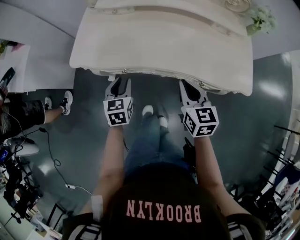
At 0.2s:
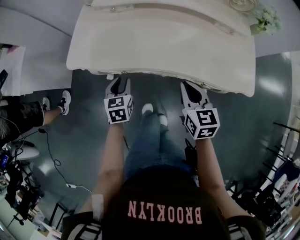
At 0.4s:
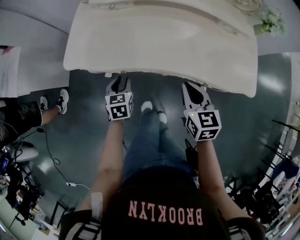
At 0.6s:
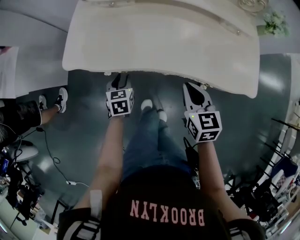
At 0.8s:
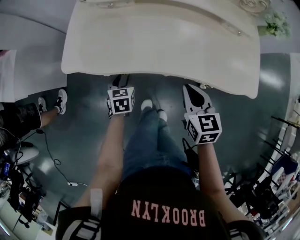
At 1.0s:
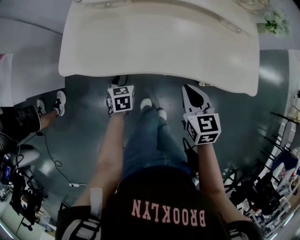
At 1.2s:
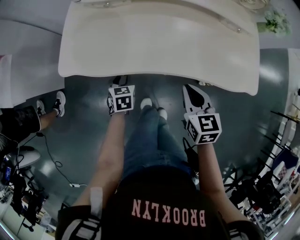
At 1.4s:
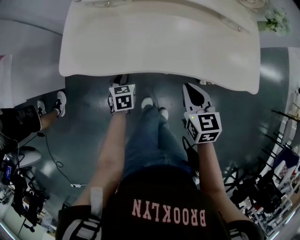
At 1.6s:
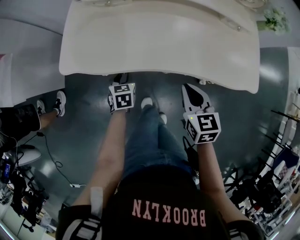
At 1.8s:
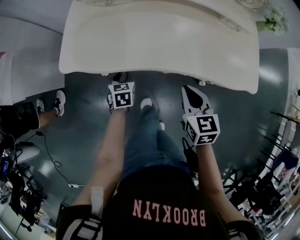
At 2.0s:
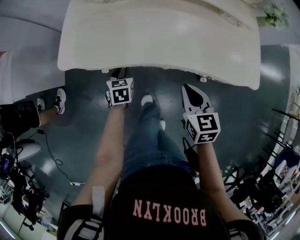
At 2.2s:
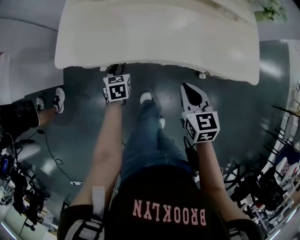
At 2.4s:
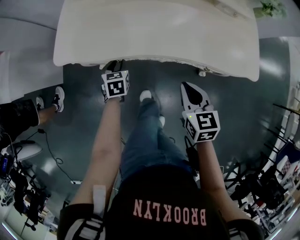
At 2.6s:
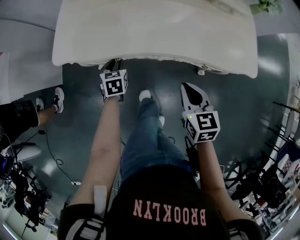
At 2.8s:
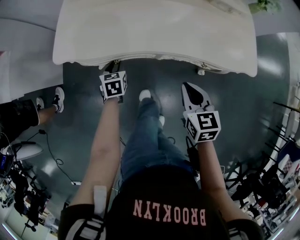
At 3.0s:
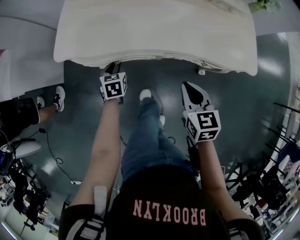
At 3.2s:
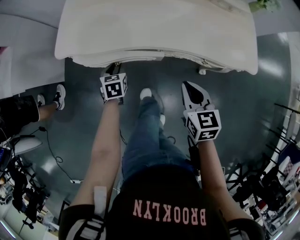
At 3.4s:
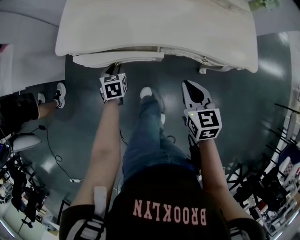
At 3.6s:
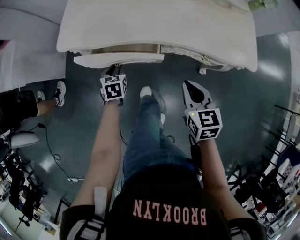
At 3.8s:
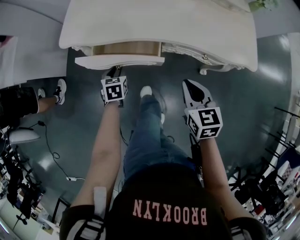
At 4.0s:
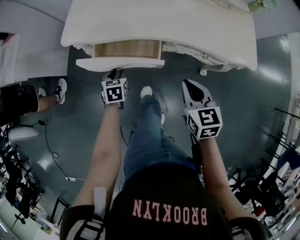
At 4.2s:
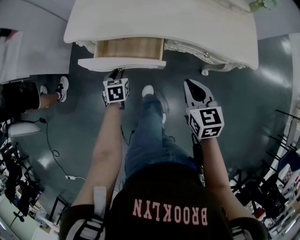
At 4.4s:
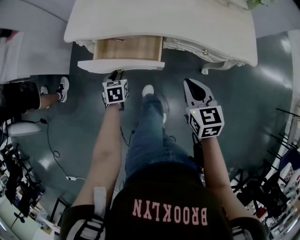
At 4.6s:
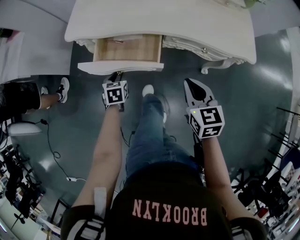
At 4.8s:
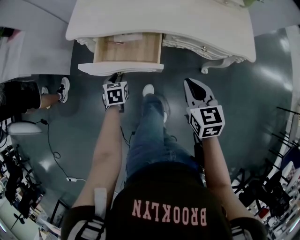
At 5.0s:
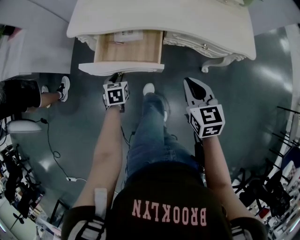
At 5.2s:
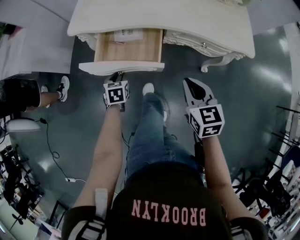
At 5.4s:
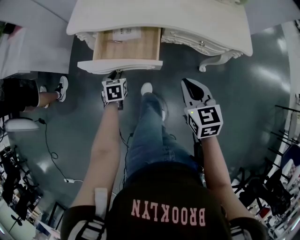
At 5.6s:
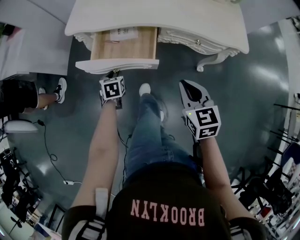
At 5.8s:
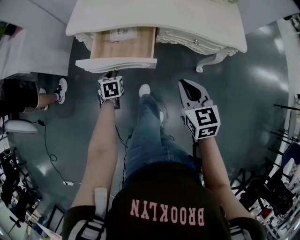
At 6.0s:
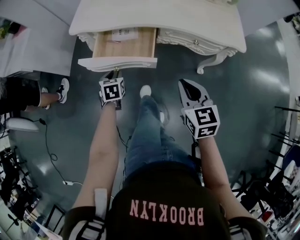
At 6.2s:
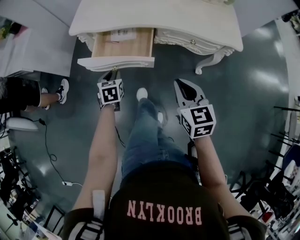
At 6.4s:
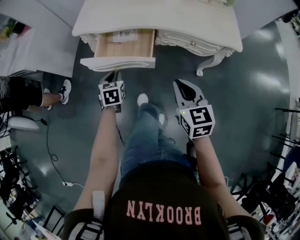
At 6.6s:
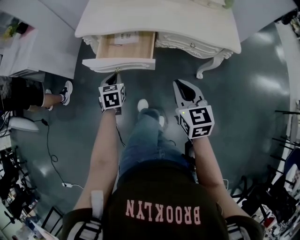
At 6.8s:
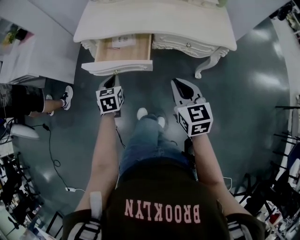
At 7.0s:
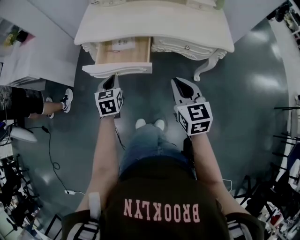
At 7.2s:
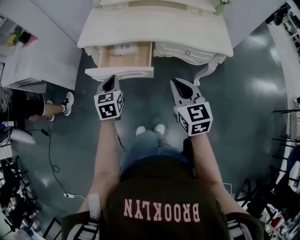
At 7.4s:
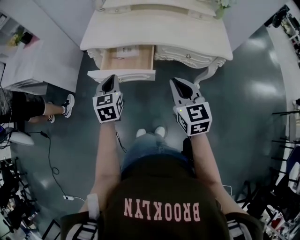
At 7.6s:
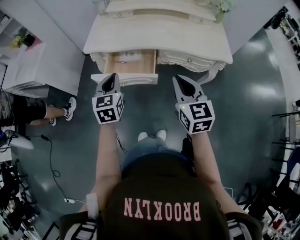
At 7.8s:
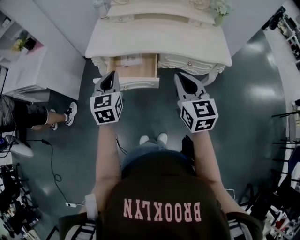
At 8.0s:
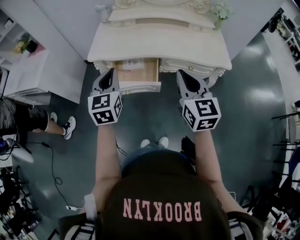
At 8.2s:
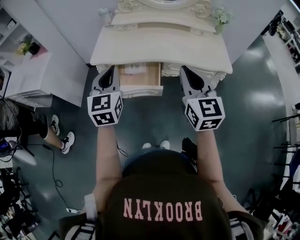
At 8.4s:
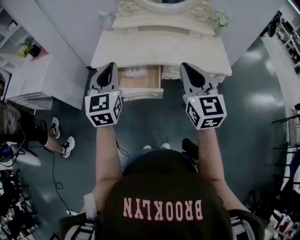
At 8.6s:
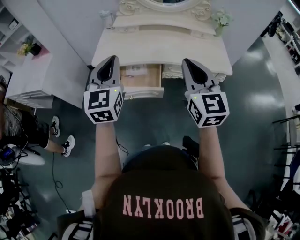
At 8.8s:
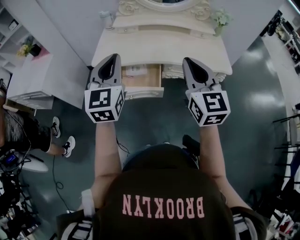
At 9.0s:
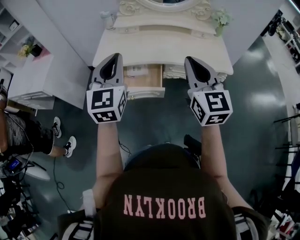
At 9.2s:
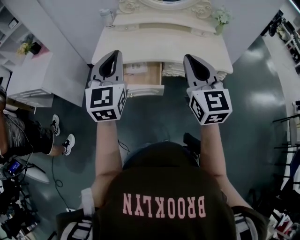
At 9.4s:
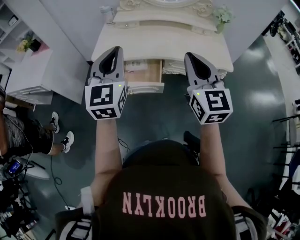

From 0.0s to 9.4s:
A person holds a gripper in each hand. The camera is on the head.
From 0.0s to 1.6s: The left gripper goes about 15 cm downward and forward.
From 1.6s to 3.2s: The right gripper travels backward by approximately 10 cm, while the left gripper heads backward, covering some 5 cm.
From 3.2s to 4.8s: The right gripper heads backward, covering approximately 10 cm, while the left gripper is displaced backward by approximately 15 cm.
From 4.8s to 6.2s: The right gripper is displaced backward by approximately 10 cm. Meanwhile the left gripper goes roughly 10 cm upward and backward.
From 6.2s to 7.8s: The left gripper travels upward by some 25 cm, rotates about 30 degrees, and closes. The right gripper shifts about 15 cm upward.
From 7.8s to 9.4s: Both grippers travel together upward, about 15 cm. The left gripper changes its angle by roughly 20 degrees.

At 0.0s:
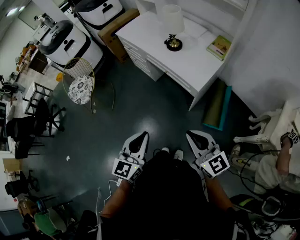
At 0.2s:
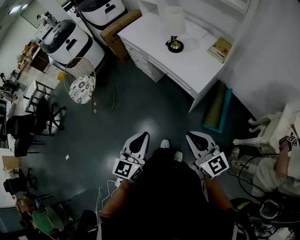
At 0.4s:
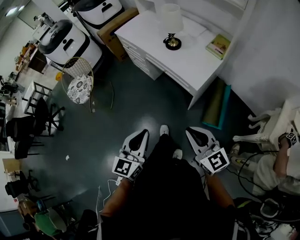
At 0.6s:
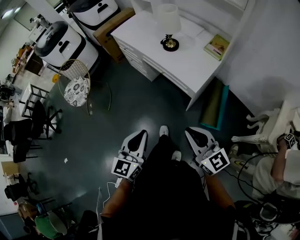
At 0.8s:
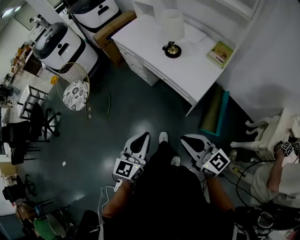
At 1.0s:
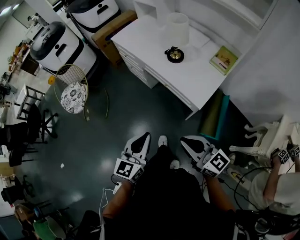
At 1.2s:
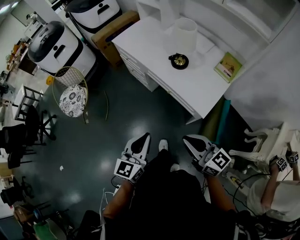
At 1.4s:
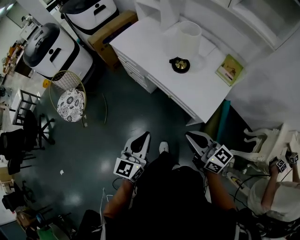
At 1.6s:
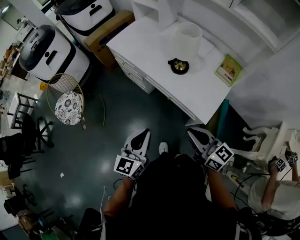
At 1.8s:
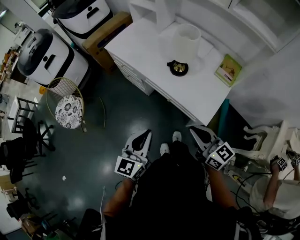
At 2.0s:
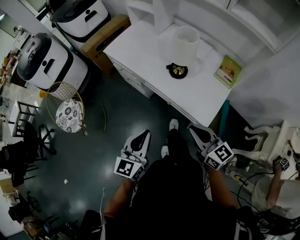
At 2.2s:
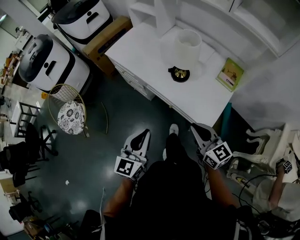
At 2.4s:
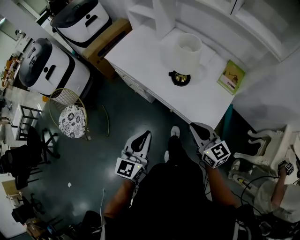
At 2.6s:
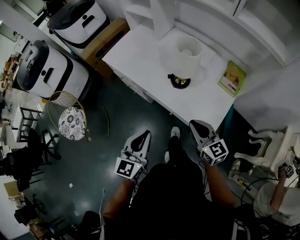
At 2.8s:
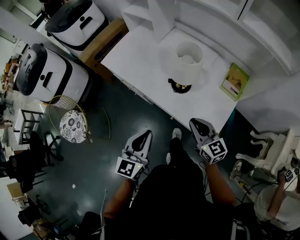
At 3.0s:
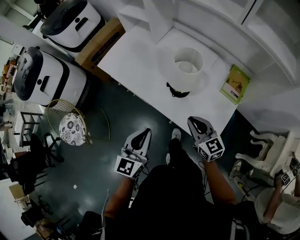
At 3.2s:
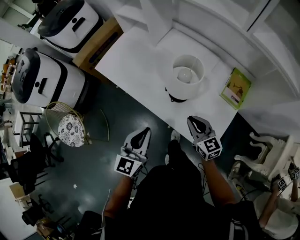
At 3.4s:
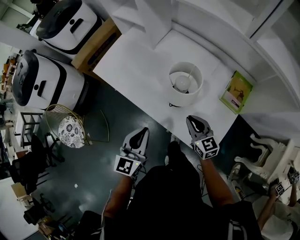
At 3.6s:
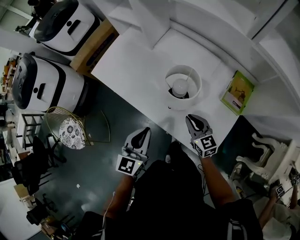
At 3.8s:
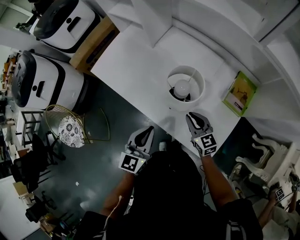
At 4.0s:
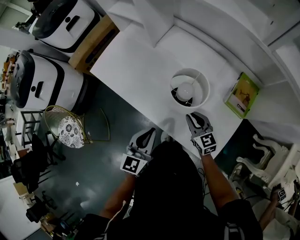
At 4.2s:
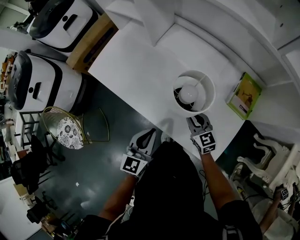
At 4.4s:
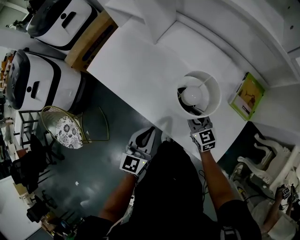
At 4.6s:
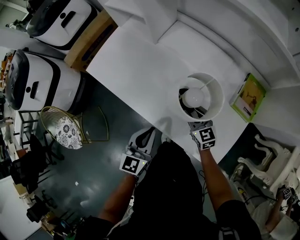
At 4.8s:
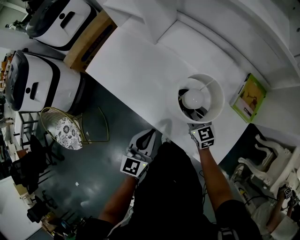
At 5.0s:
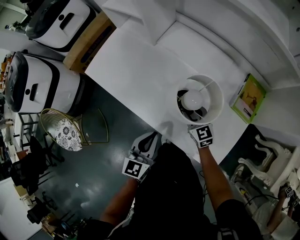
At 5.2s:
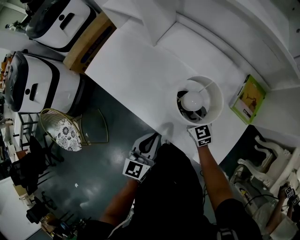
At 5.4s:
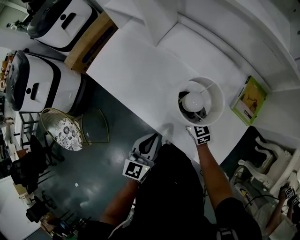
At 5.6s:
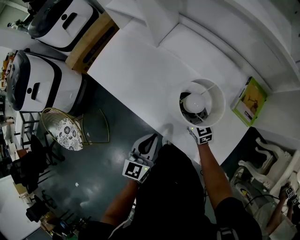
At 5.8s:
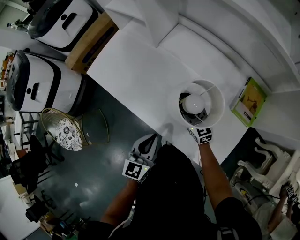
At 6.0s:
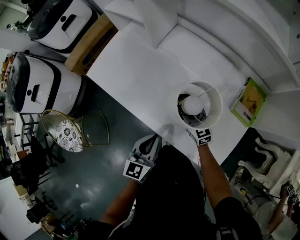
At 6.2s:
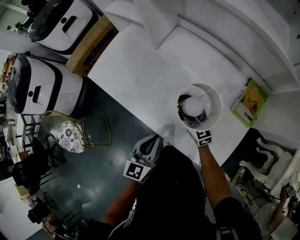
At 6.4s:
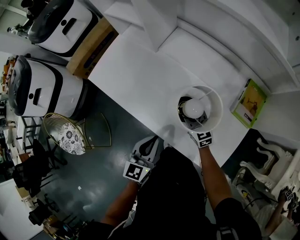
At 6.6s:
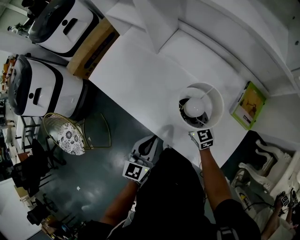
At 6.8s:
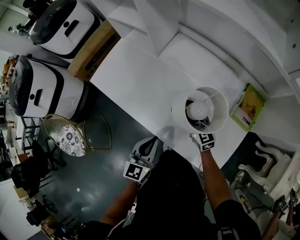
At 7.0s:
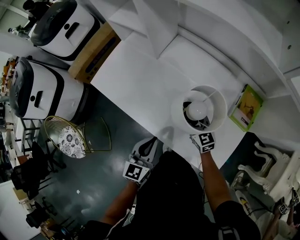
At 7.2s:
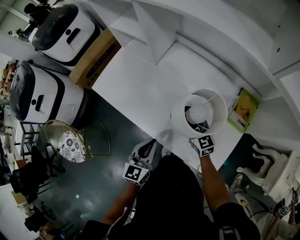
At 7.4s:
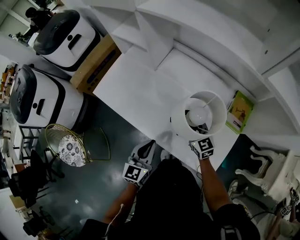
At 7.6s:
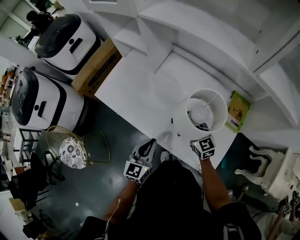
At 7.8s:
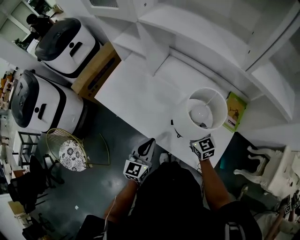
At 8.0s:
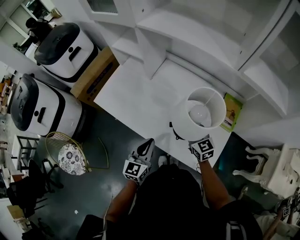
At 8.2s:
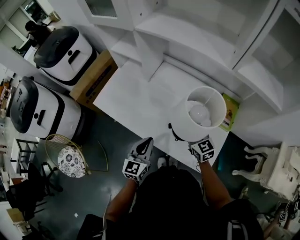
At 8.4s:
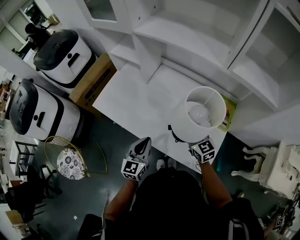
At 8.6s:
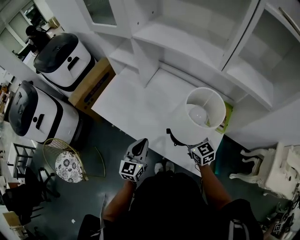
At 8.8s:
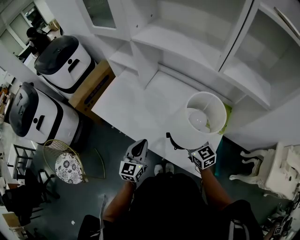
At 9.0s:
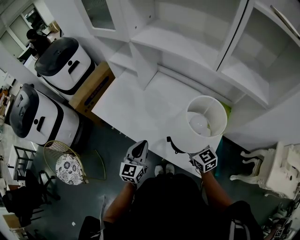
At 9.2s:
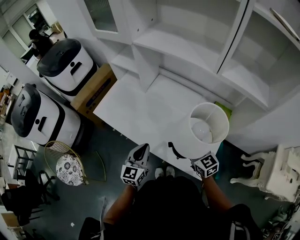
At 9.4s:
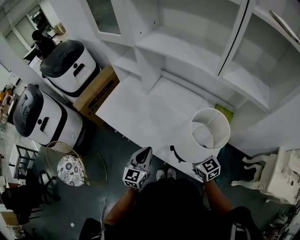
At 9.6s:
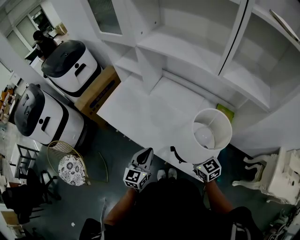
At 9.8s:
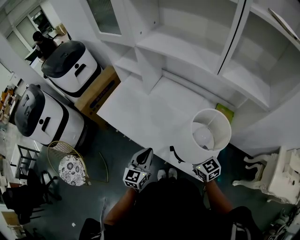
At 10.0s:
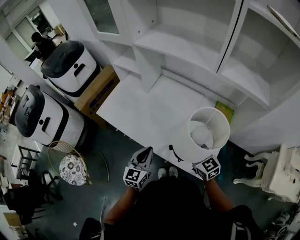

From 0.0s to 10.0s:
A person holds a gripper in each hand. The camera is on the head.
From 0.0s to 1.4s: The two grippers go approximately 25 cm forward.
From 1.4s to 2.8s: The two grippers go roughly 20 cm forward. The right gripper changes its angle by roughly 20 degrees.
From 2.8s to 4.2s: Both grippers travel together forward and downward, about 20 cm.
From 4.2s to 5.8s: The right gripper heads forward, covering roughly 5 cm, and opens up.
From 5.8s to 7.2s: The right gripper shifts about 5 cm upward.
From 7.2s to 8.6s: The right gripper heads upward and backward, covering roughly 15 cm. The left gripper shifts some 10 cm upward.
From 8.6s to 10.0s: The right gripper travels backward by roughly 5 cm.

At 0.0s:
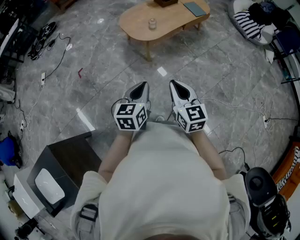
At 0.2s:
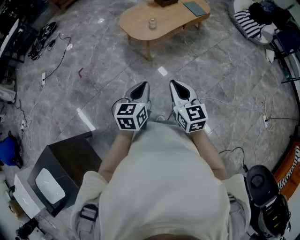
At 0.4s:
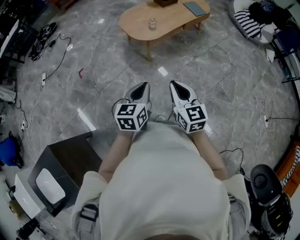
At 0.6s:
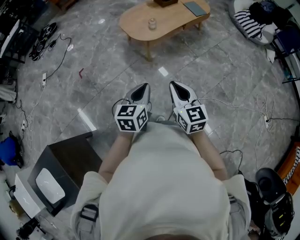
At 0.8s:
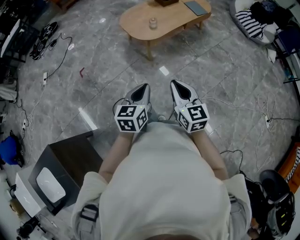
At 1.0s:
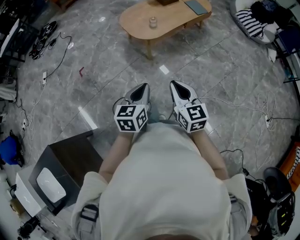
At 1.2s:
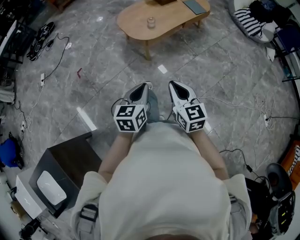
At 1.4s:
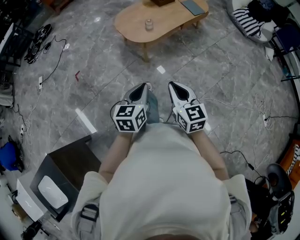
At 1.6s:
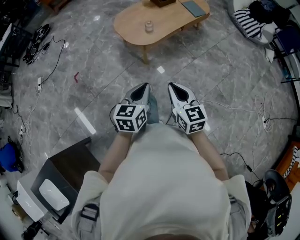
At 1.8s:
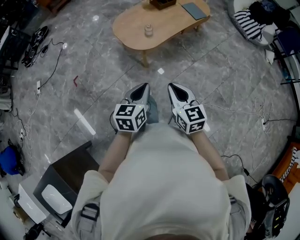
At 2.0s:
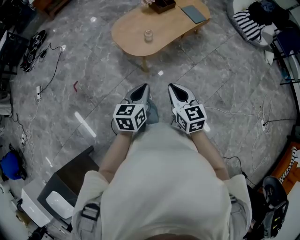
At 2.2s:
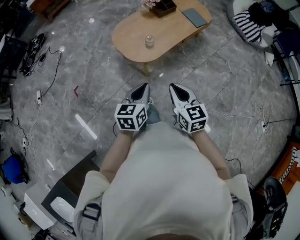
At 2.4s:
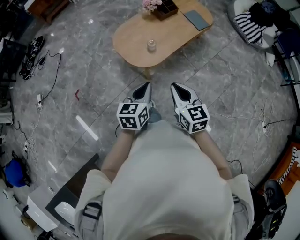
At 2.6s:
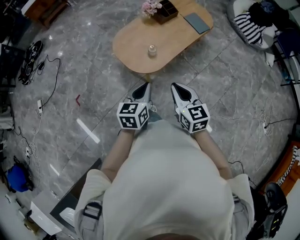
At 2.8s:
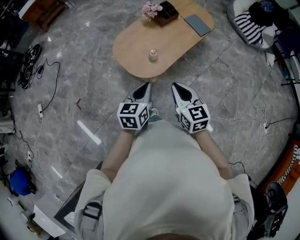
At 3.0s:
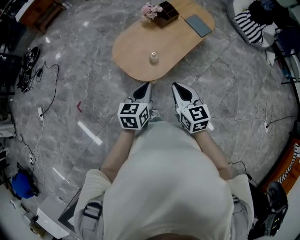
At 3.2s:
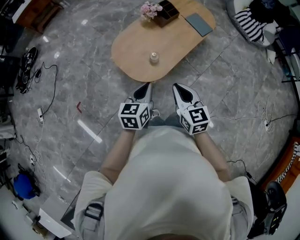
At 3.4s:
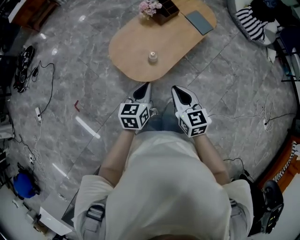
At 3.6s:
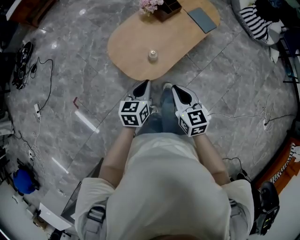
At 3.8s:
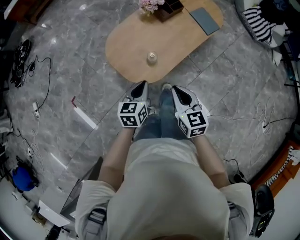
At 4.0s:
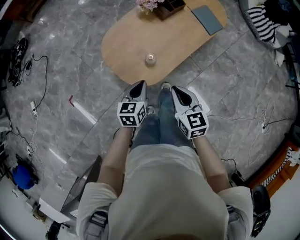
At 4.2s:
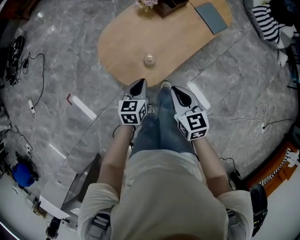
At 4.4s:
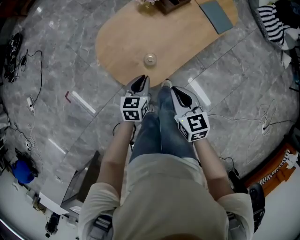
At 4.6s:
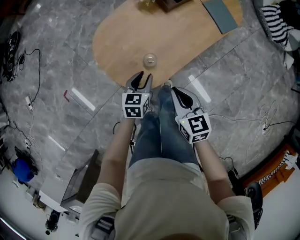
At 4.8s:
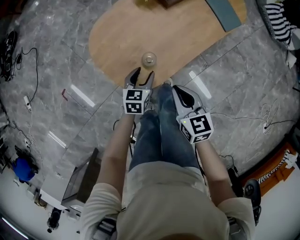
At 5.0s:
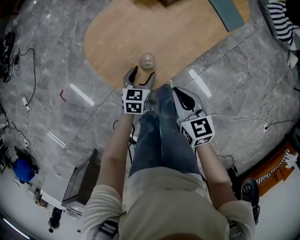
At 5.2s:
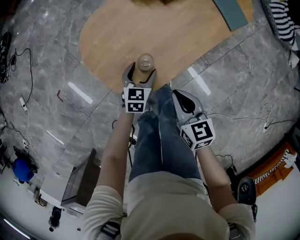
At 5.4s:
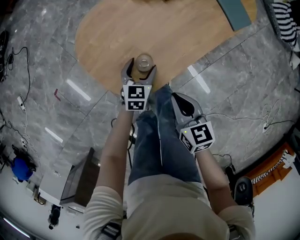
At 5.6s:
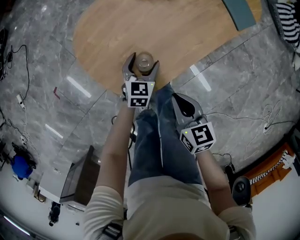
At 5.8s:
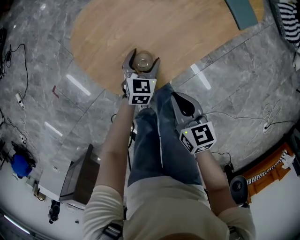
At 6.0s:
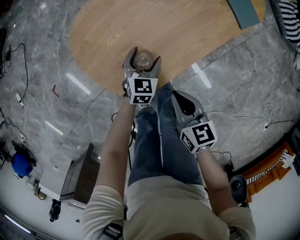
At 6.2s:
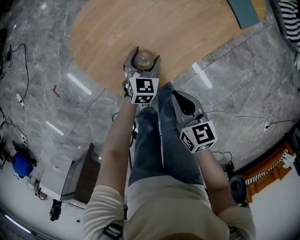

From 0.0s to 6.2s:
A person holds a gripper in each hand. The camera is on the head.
From 0.0s to 1.6s: Both grippers move forward, roughly 5 cm.
From 1.6s to 3.2s: The grippers both shift forward by roughly 35 cm.
From 3.2s to 4.6s: Both grippers move downward and forward, about 25 cm. The left gripper opens up.
From 4.6s to 6.2s: The right gripper is displaced downward by approximately 10 cm. The left gripper is displaced downward and forward by roughly 15 cm, and opens.
